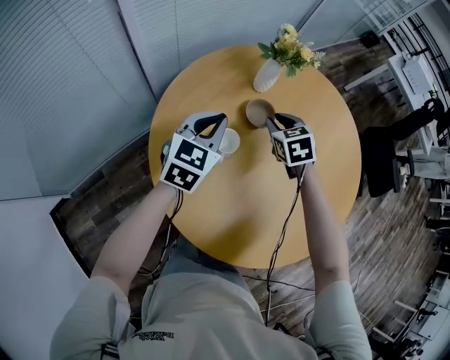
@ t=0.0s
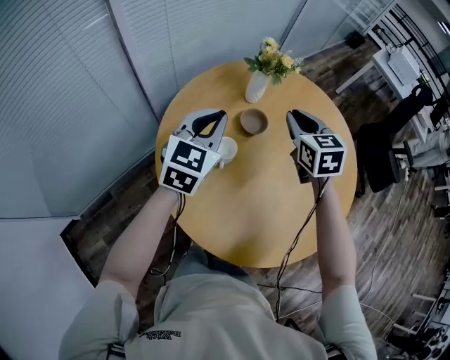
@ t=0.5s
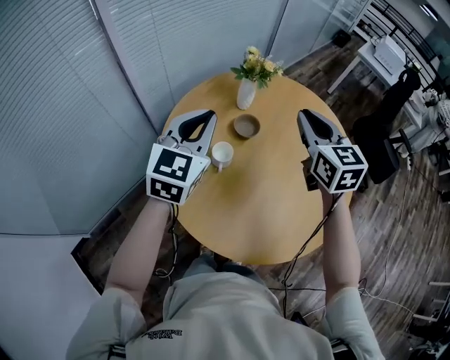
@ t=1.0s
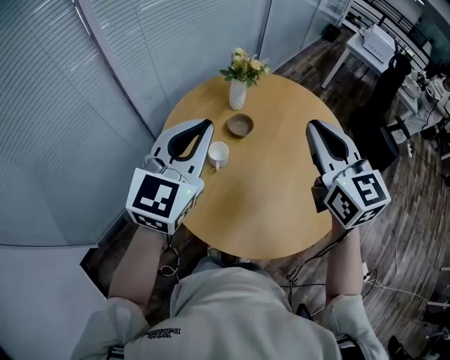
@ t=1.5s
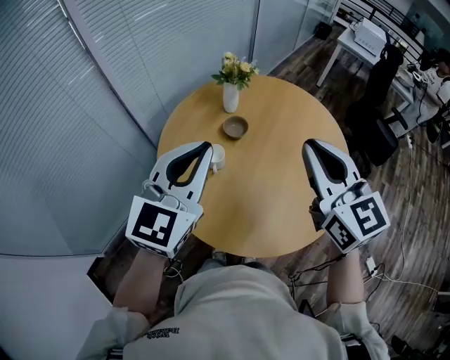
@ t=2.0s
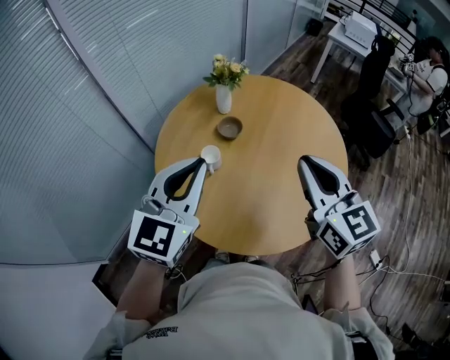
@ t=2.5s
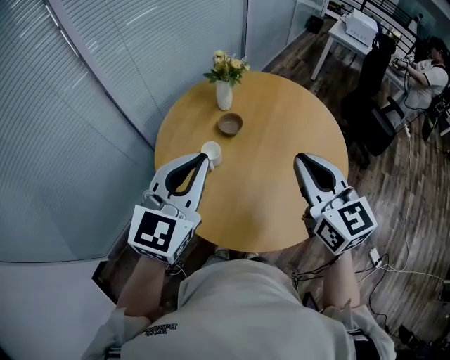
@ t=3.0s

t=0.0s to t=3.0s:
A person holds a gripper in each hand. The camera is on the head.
t=0.0s to t=1.5s: The two grippers go about 35 cm upward and backward. The right gripper angles its fingers upward, by some 40 degrees, while the left gripper turns by roughly 20 degrees.
t=1.5s to t=3.0s: The two grippers go some 10 cm backward.

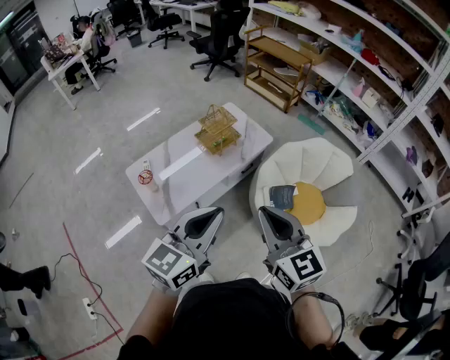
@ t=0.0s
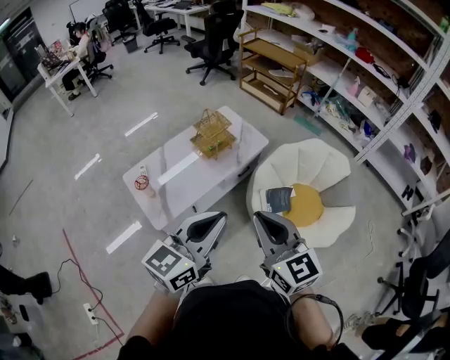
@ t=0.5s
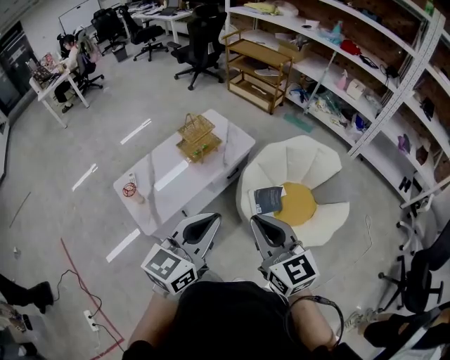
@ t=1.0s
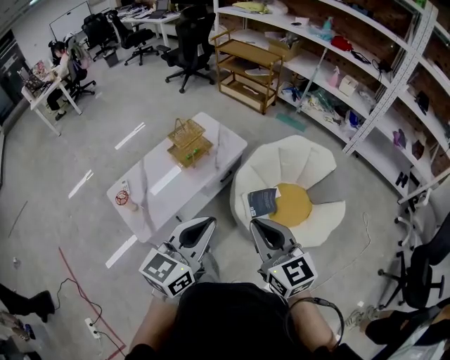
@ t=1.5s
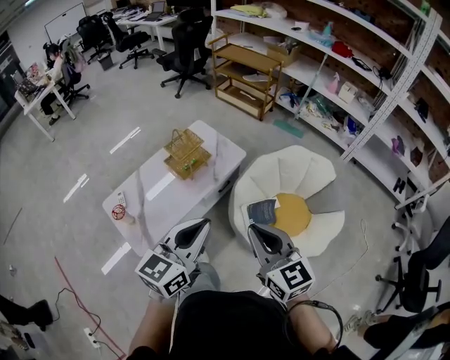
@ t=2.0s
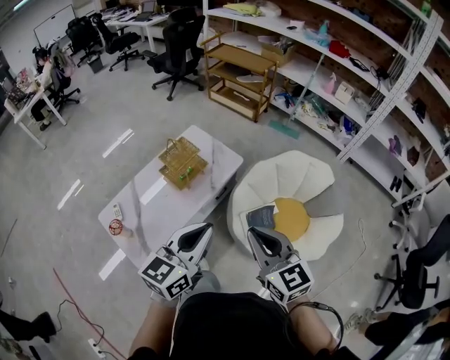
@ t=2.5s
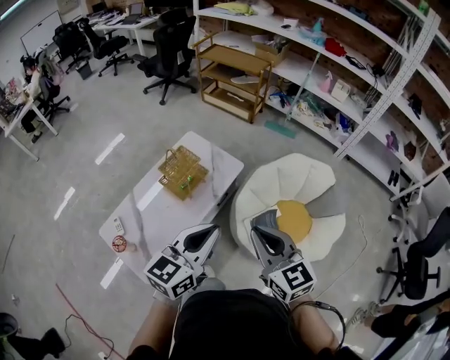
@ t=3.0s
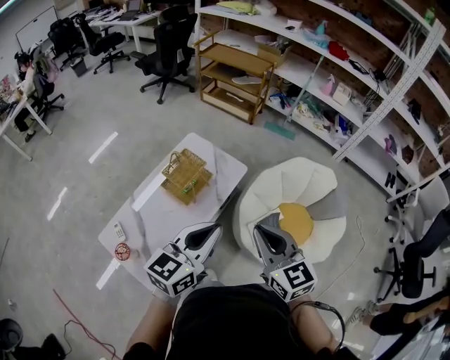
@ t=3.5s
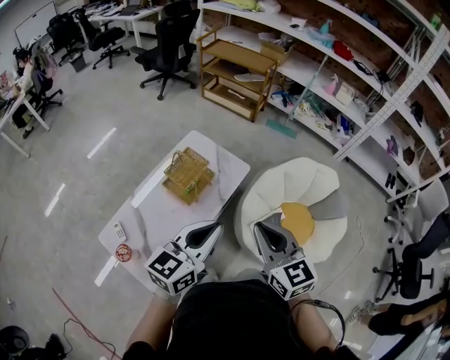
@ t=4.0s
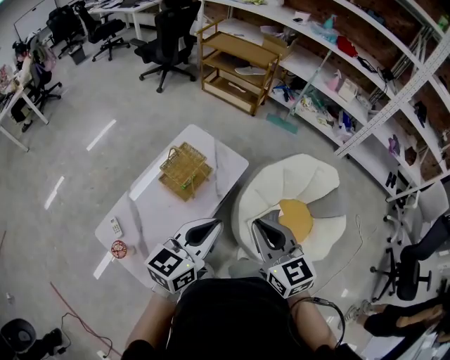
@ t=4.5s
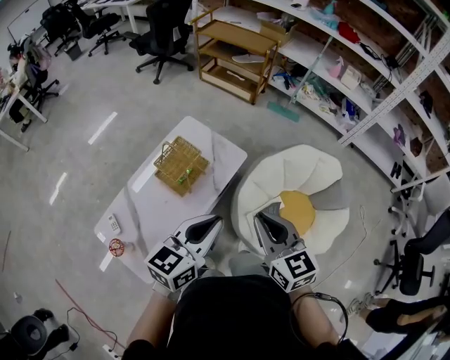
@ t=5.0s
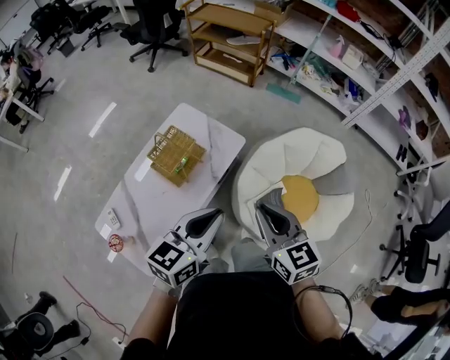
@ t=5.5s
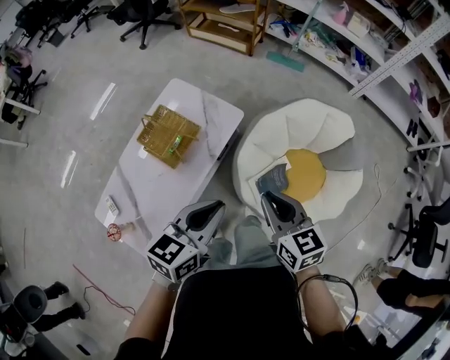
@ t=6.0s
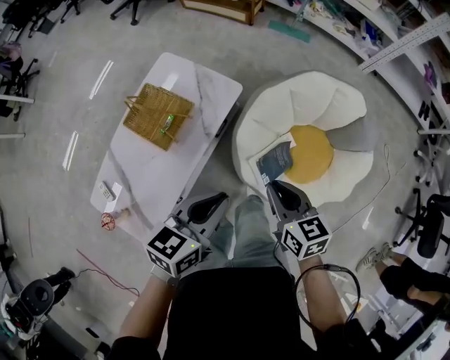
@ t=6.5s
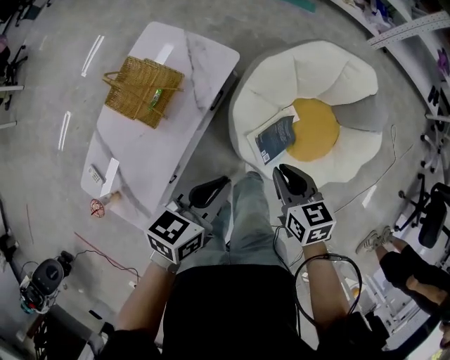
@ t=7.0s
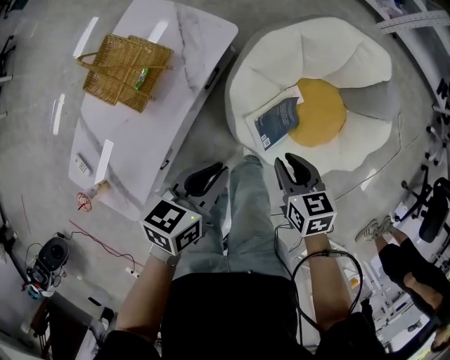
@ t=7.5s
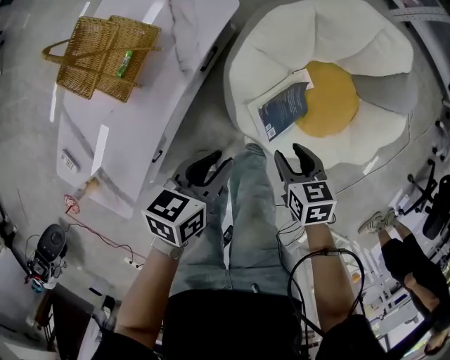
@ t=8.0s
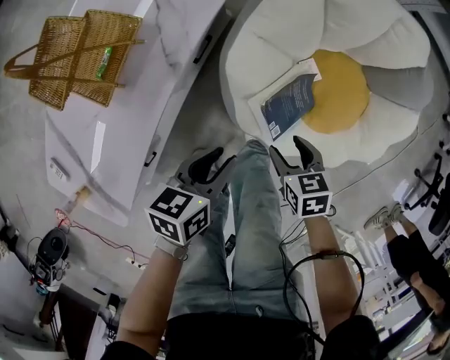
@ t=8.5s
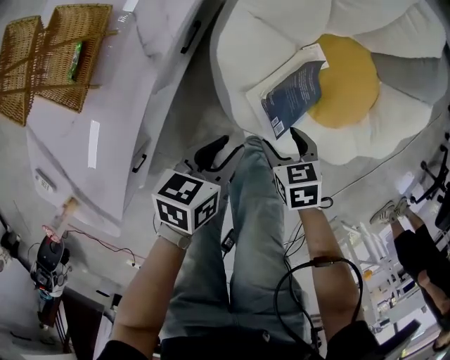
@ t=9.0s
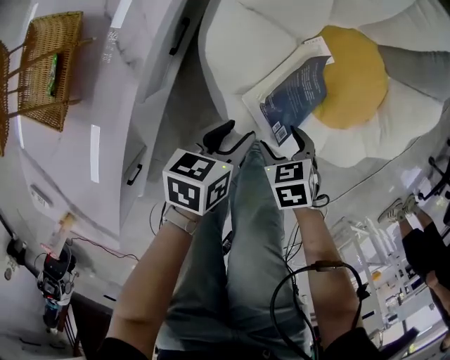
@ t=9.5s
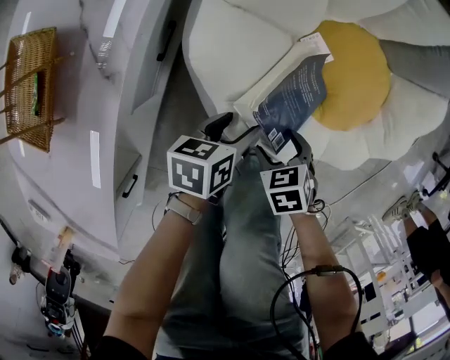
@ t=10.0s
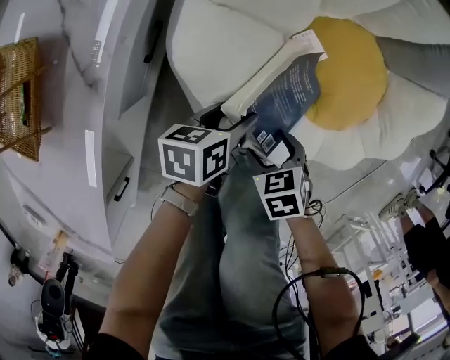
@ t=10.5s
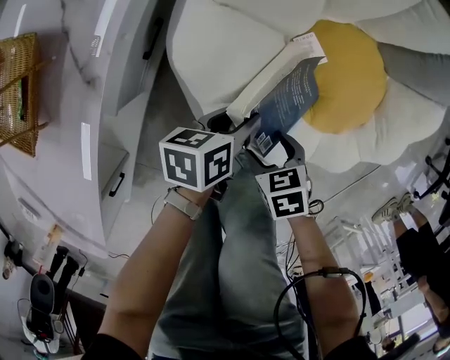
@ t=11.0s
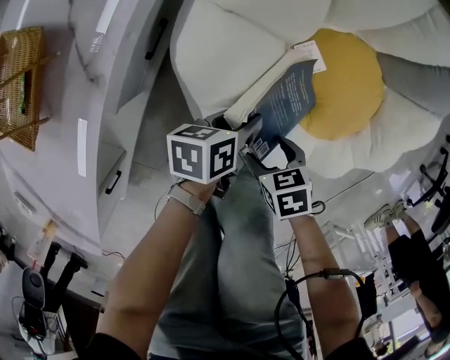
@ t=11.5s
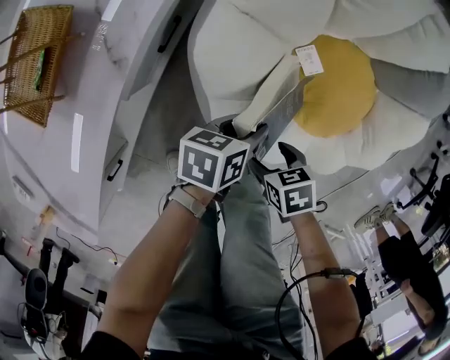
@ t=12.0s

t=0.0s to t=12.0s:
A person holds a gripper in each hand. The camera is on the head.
t=0.0s to t=2.0s: The right gripper goes roughly 15 cm to the right and forward. The left gripper moves forward and to the right, some 15 cm.
t=2.0s to t=4.0s: The two grippers go approximately 20 cm forward and to the left.
t=4.0s to t=6.0s: The left gripper heads to the right, downward and forward, covering some 15 cm. Meanwhile the right gripper moves downward, to the right and forward, some 20 cm.
t=6.0s to t=8.0s: Both grippers move downward, approximately 35 cm. The right gripper swivels about 30 degrees, and opens up. Meanwhile the left gripper swivels roughly 30 degrees.
t=8.0s to t=10.0s: Both grippers move downward, about 30 cm. The left gripper opens its fingers, while the right gripper opens up.
t=10.0s to t=12.0s: The left gripper moves about 5 cm, and closes its fingers.

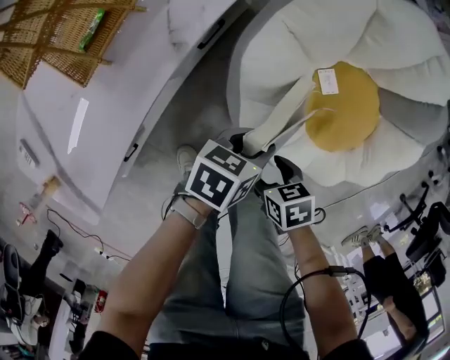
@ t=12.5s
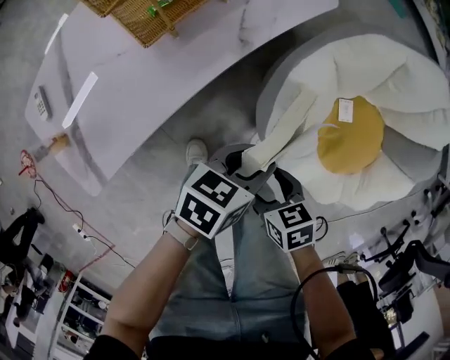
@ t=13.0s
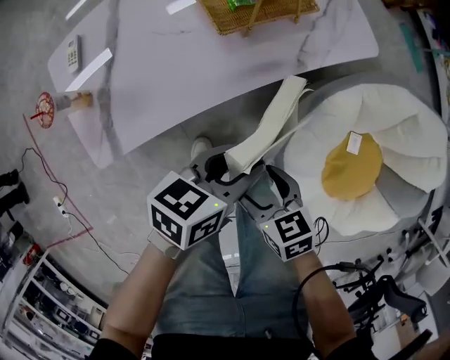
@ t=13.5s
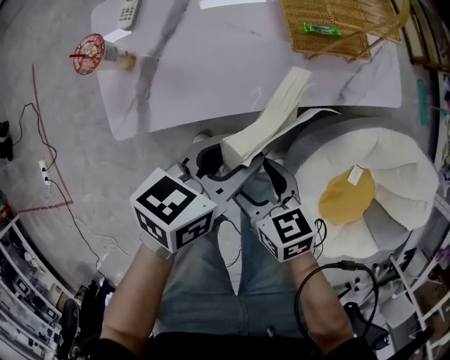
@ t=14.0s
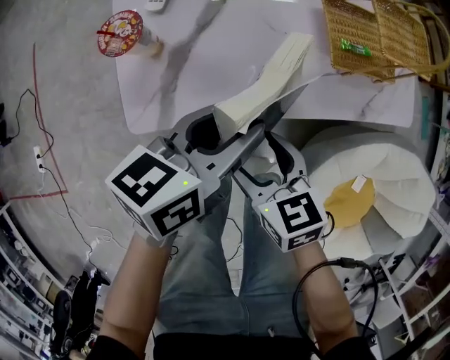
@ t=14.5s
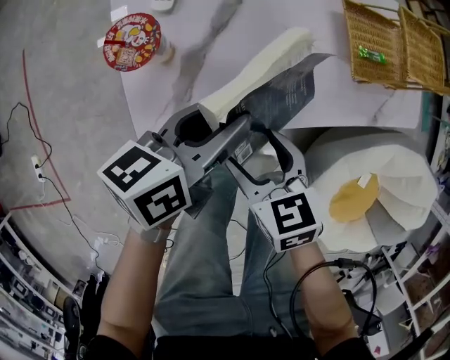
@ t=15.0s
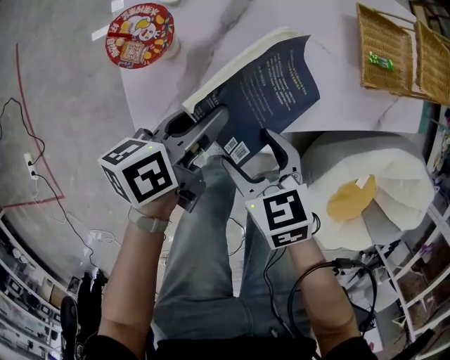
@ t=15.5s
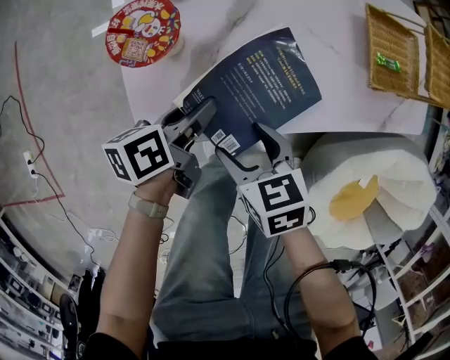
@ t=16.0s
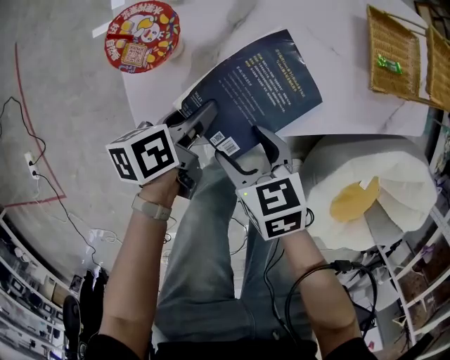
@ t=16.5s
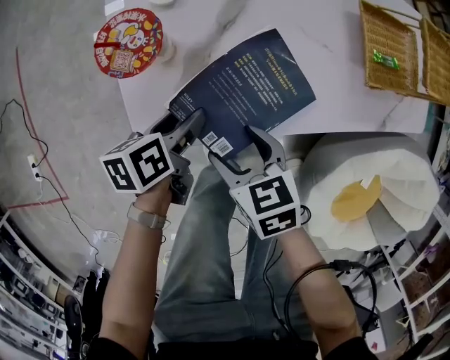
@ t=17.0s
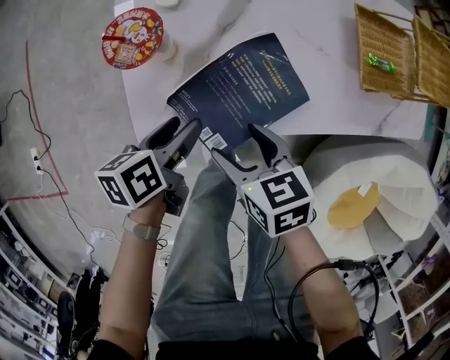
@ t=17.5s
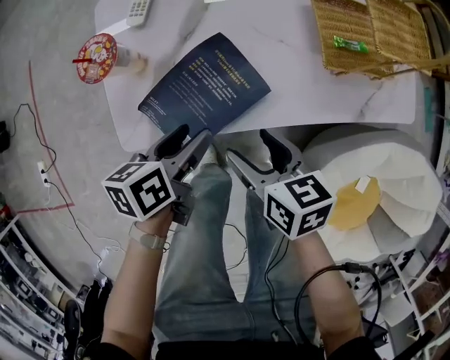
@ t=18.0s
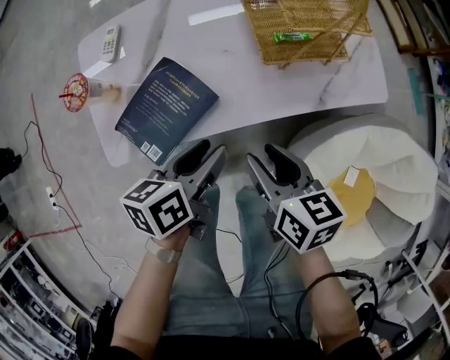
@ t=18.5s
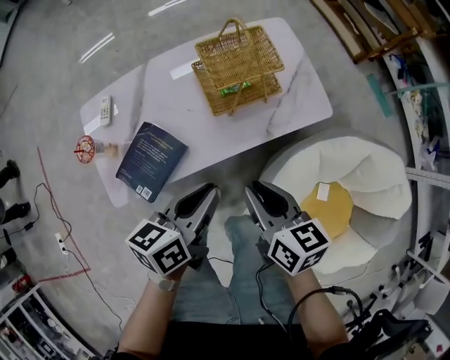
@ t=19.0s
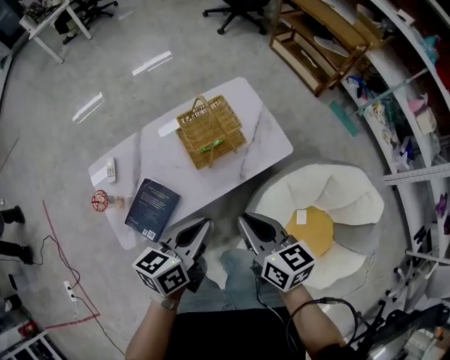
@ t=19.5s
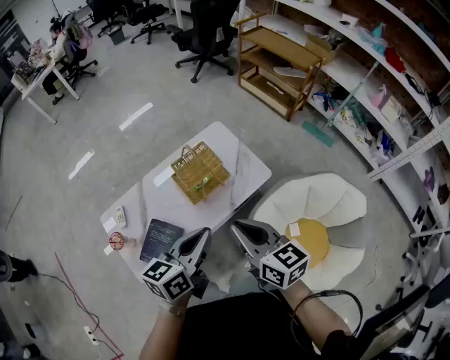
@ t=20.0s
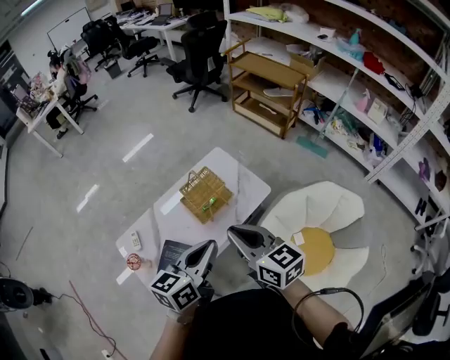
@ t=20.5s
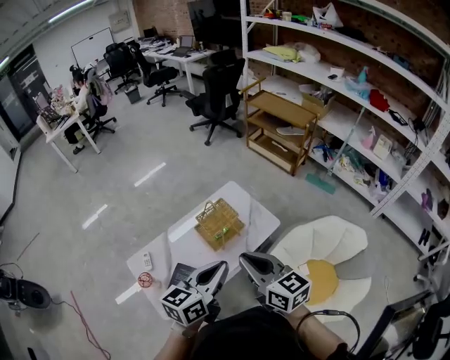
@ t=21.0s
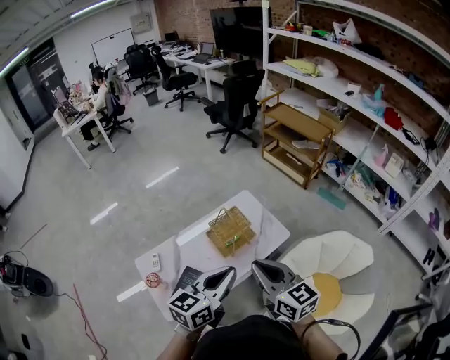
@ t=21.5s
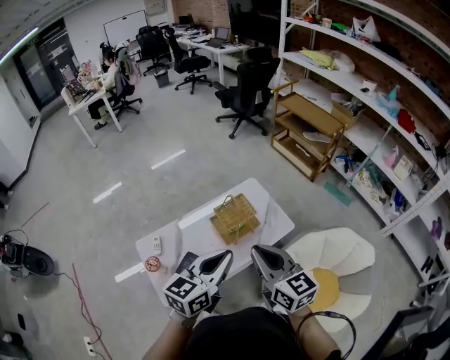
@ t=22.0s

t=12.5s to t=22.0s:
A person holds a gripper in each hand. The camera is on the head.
t=12.5s to t=14.5s: The pair of grippers is taken some 40 cm. The left gripper swivels about 70 degrees. The right gripper rotates around the line of its fingers by roughly 50 degrees, counterclockwise from behind.
t=14.5s to t=16.5s: The right gripper heads to the left and downward, covering roughly 15 cm. The left gripper is displaced downward and to the left by some 25 cm, and rotates approximately 30 degrees.
t=16.5s to t=18.0s: The right gripper goes roughly 15 cm to the right and upward. Meanwhile the left gripper travels to the right, upward and backward by approximately 10 cm.
t=18.0s to t=20.0s: Both grippers travel together upward, approximately 40 cm. The left gripper changes its angle by about 50 degrees, and closes. Meanwhile the right gripper rotates approximately 40 degrees, and closes its fingers.
t=20.0s to t=22.0s: The left gripper travels upward by approximately 15 cm. The right gripper goes roughly 15 cm upward and to the left.

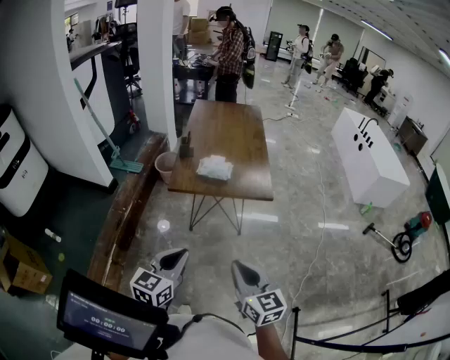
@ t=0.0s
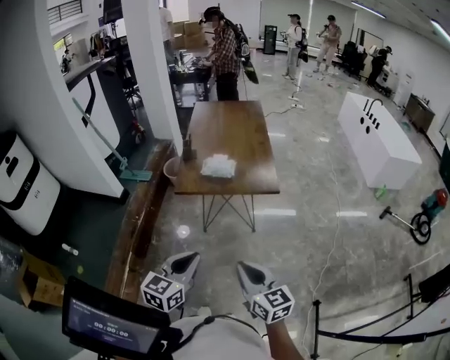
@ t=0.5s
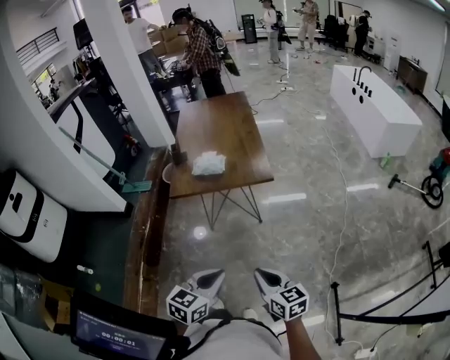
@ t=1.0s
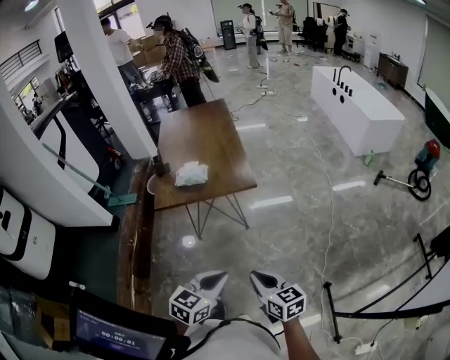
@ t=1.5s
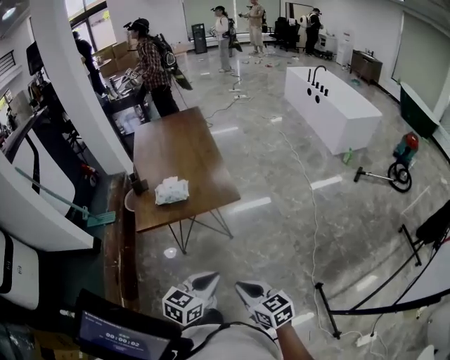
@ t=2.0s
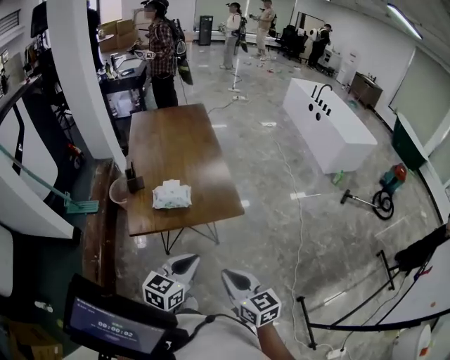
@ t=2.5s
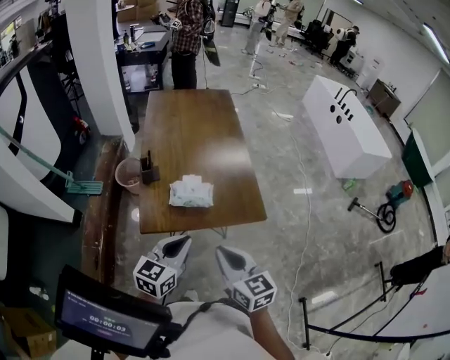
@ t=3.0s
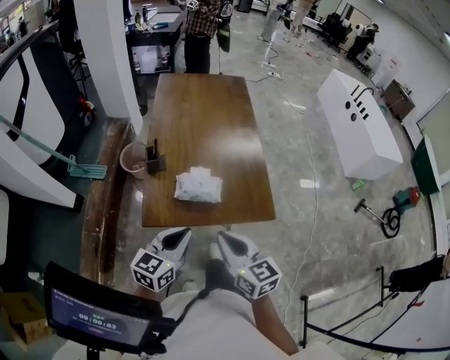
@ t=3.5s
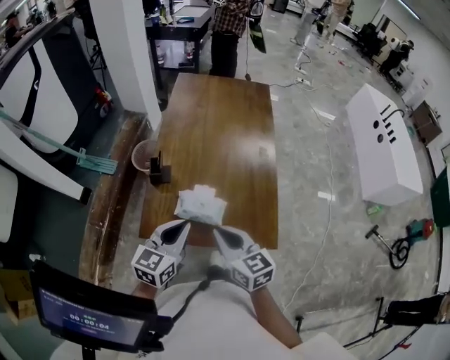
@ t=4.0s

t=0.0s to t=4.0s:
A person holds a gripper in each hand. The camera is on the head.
t=0.0s to t=2.0s: The left gripper is displaced to the right by roughly 20 cm, and turns by some 30 degrees, while the right gripper is displaced downward and to the right by approximately 15 cm.
t=2.0s to t=4.0s: The two grippers travel together, forward and to the left, about 50 cm. The left gripper rotates about 30 degrees.
